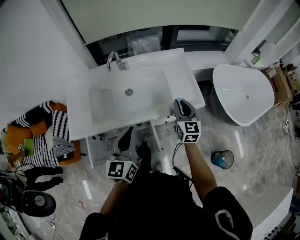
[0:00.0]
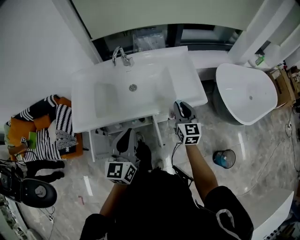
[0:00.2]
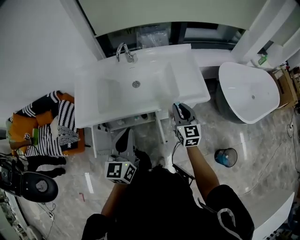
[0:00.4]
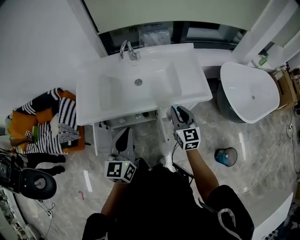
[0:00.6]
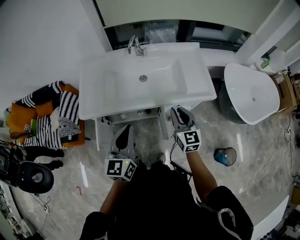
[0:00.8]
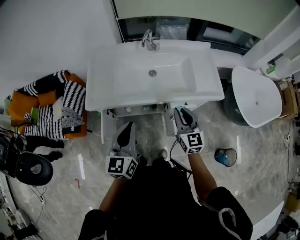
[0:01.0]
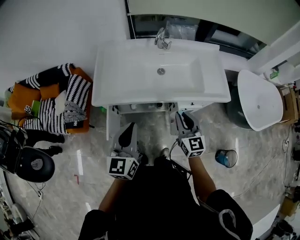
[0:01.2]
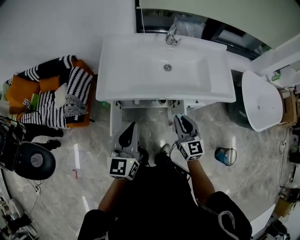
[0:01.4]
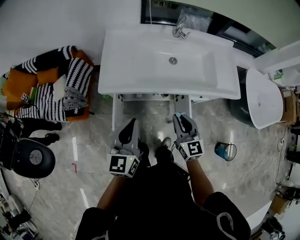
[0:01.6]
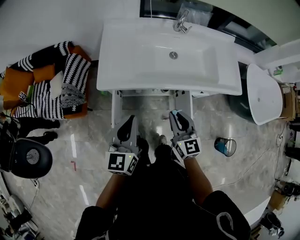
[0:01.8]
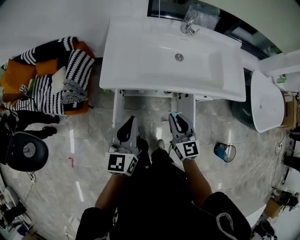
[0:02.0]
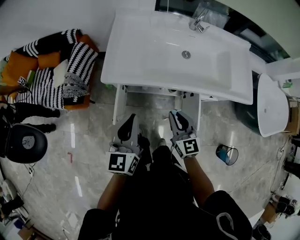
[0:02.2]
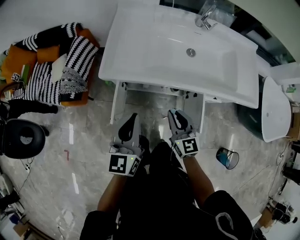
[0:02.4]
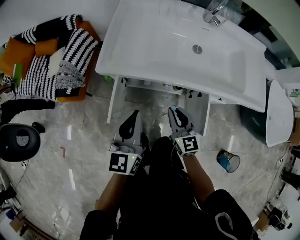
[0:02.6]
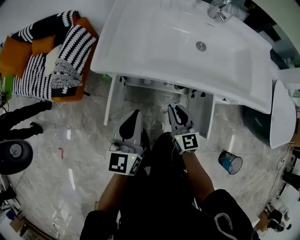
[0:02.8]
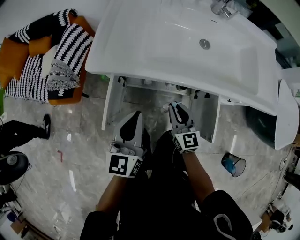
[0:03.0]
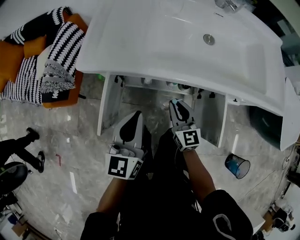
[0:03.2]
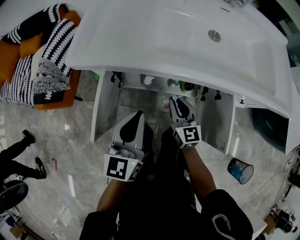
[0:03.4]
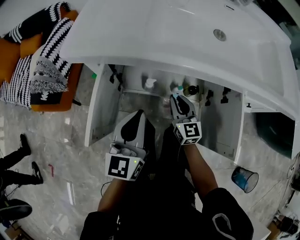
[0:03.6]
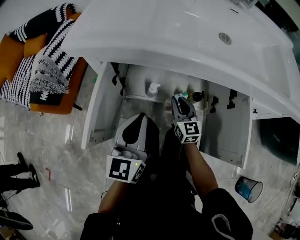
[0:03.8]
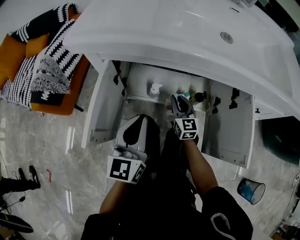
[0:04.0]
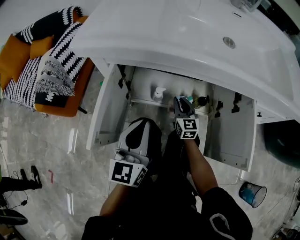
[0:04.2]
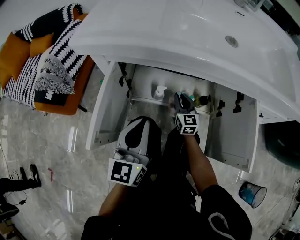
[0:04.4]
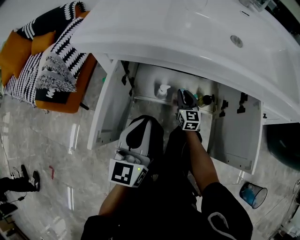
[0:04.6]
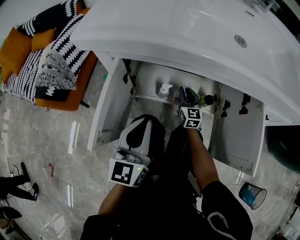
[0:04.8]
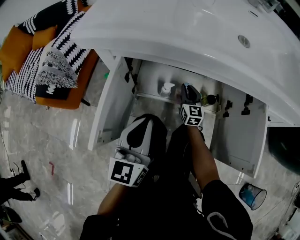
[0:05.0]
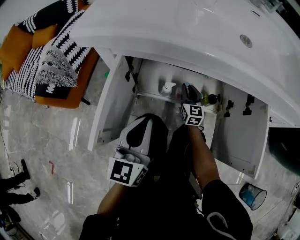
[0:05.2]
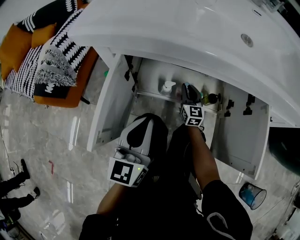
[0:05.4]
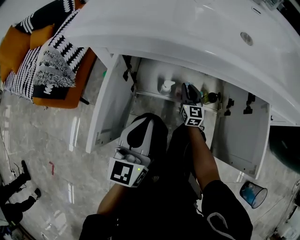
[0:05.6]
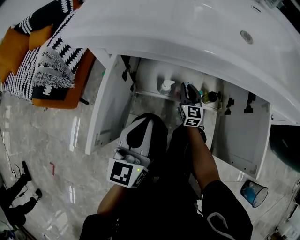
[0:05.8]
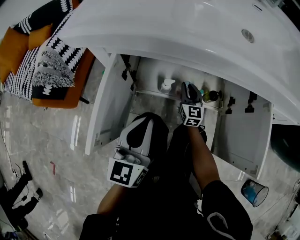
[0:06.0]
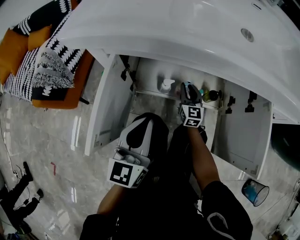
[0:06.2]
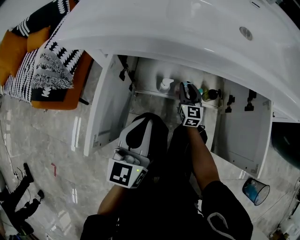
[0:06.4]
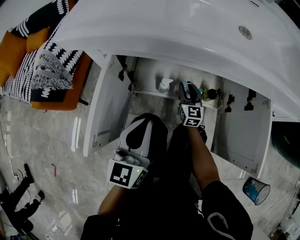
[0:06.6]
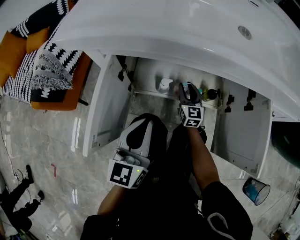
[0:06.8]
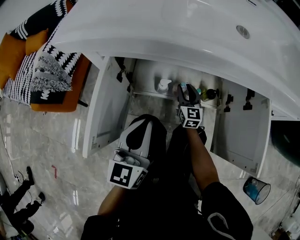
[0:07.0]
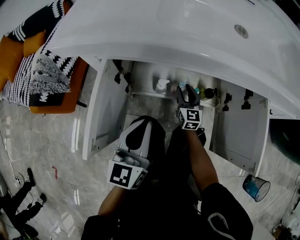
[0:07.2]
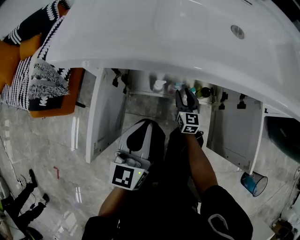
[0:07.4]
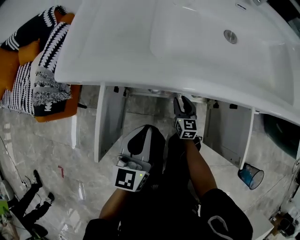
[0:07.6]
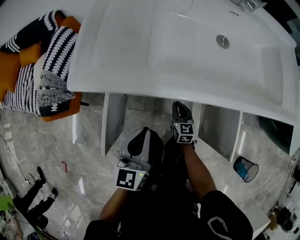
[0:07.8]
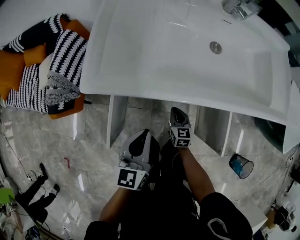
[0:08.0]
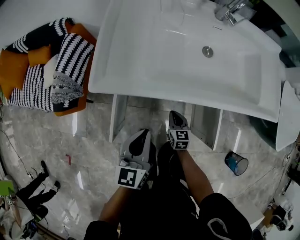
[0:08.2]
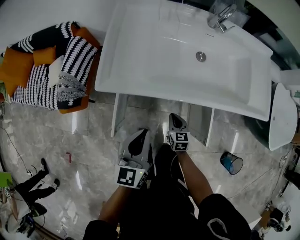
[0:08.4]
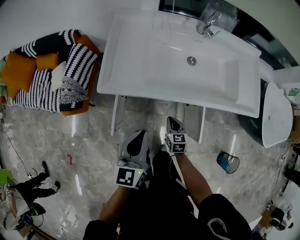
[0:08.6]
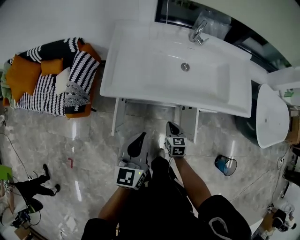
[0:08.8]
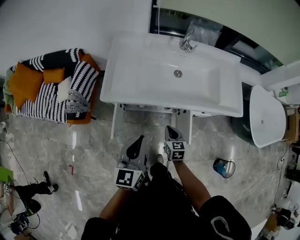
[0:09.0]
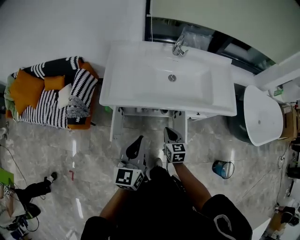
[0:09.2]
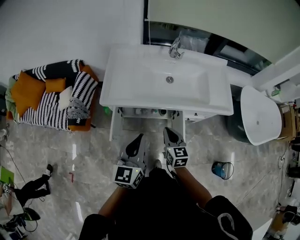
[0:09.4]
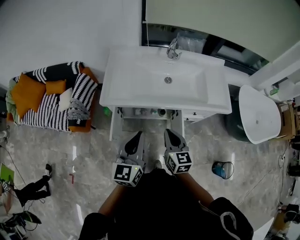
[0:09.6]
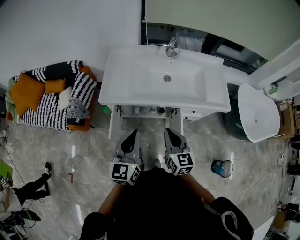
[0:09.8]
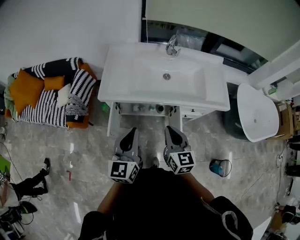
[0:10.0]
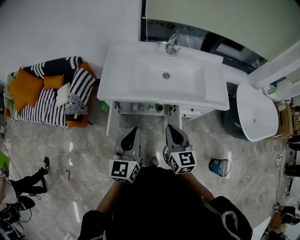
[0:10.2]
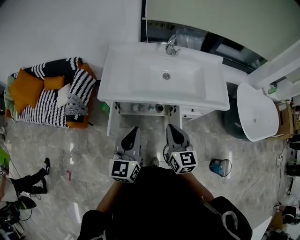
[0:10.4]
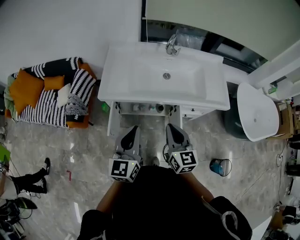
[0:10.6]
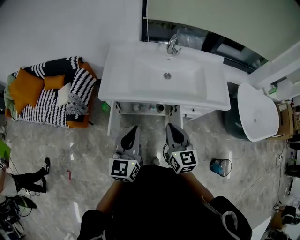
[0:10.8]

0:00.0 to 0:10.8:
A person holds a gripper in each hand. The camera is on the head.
0:00.0 to 0:01.6: The right gripper is displaced to the left and backward by approximately 35 cm, and swivels approximately 20 degrees. The left gripper heads to the left, covering some 30 cm.
0:01.6 to 0:03.0: Both grippers move downward, roughly 25 cm.
0:03.0 to 0:04.6: The left gripper moves downward, approximately 20 cm, while the right gripper is displaced downward and forward by approximately 35 cm.
0:04.6 to 0:06.2: There are only small adjustments of the grippers.
0:06.2 to 0:07.8: The left gripper goes approximately 10 cm upward. The right gripper moves backward and upward, roughly 10 cm, and changes its angle by approximately 20 degrees.
0:07.8 to 0:09.2: Both grippers move upward, some 40 cm.
0:09.2 to 0:10.8: The right gripper moves upward, approximately 20 cm, and swivels approximately 20 degrees.

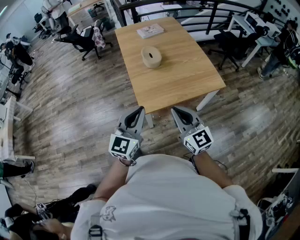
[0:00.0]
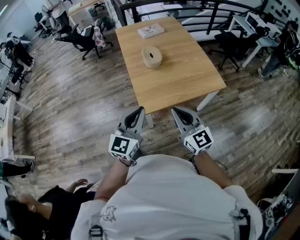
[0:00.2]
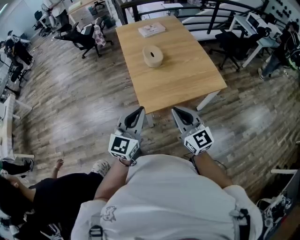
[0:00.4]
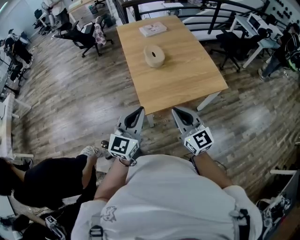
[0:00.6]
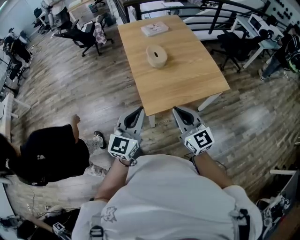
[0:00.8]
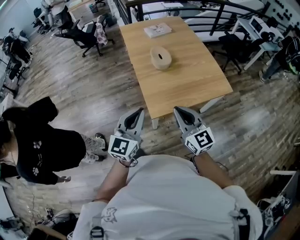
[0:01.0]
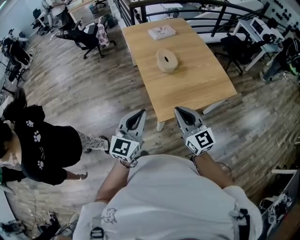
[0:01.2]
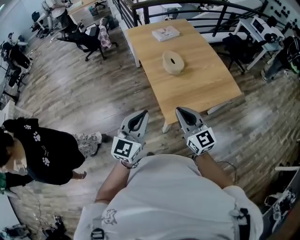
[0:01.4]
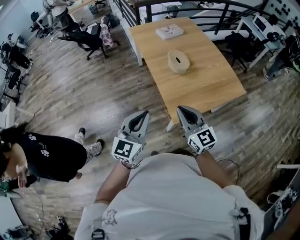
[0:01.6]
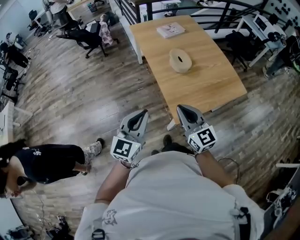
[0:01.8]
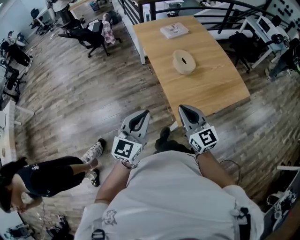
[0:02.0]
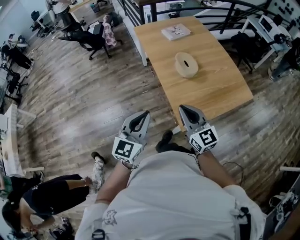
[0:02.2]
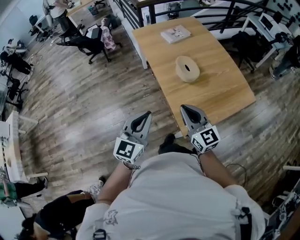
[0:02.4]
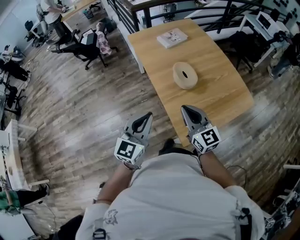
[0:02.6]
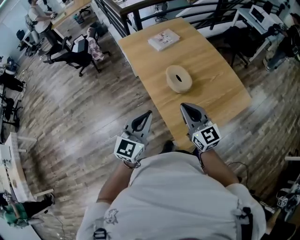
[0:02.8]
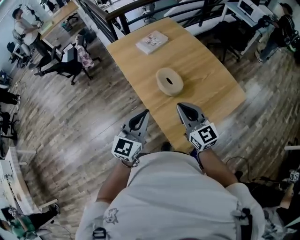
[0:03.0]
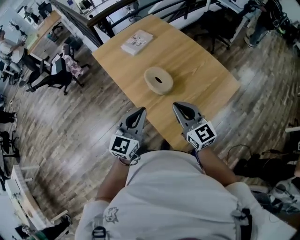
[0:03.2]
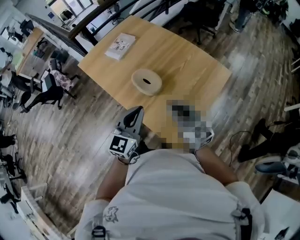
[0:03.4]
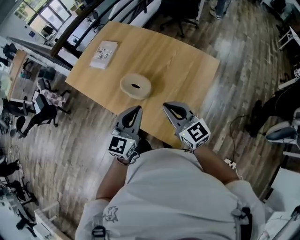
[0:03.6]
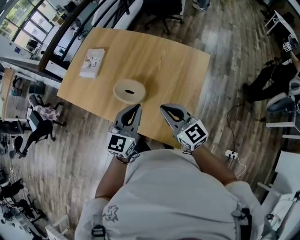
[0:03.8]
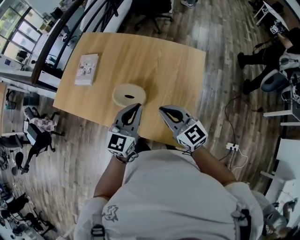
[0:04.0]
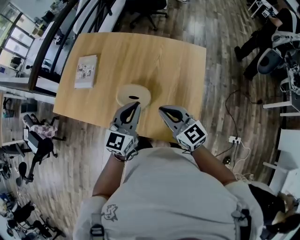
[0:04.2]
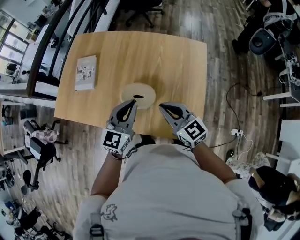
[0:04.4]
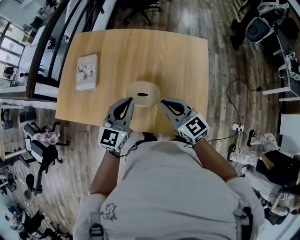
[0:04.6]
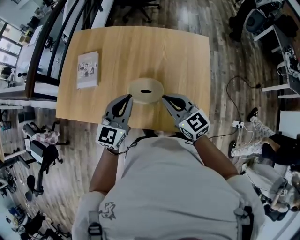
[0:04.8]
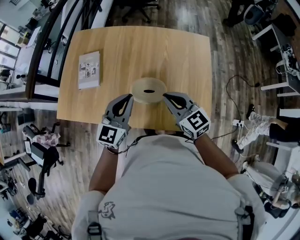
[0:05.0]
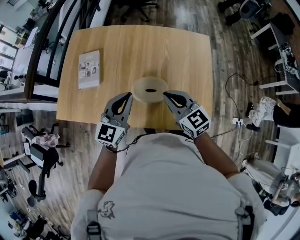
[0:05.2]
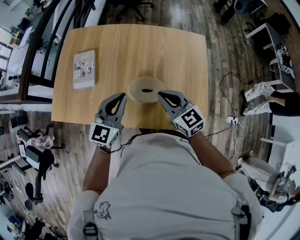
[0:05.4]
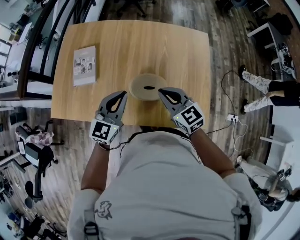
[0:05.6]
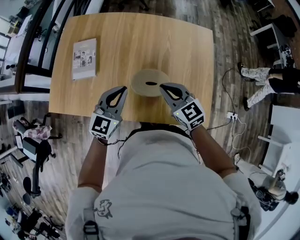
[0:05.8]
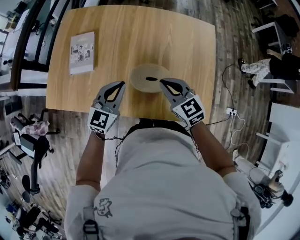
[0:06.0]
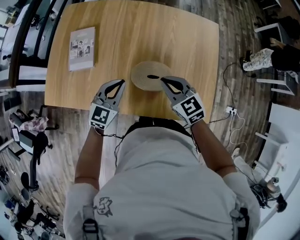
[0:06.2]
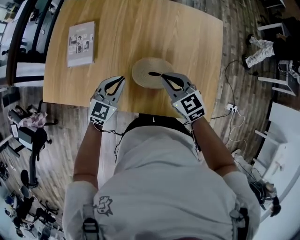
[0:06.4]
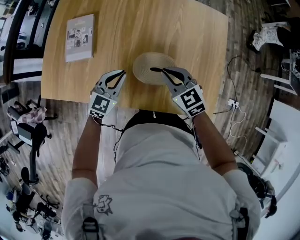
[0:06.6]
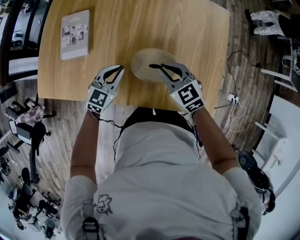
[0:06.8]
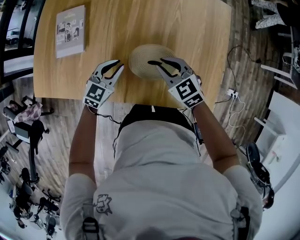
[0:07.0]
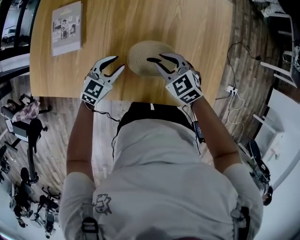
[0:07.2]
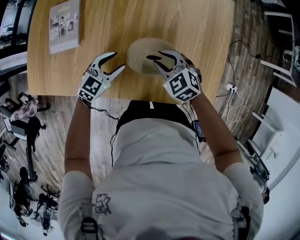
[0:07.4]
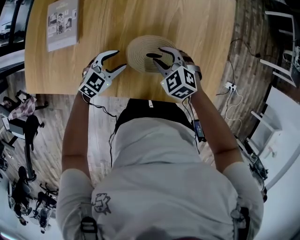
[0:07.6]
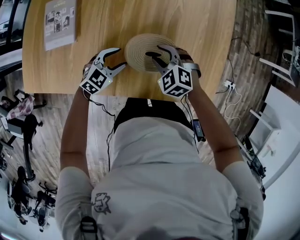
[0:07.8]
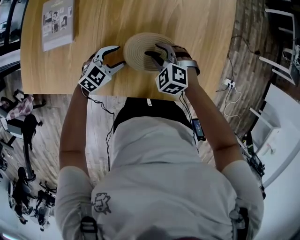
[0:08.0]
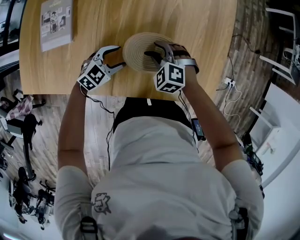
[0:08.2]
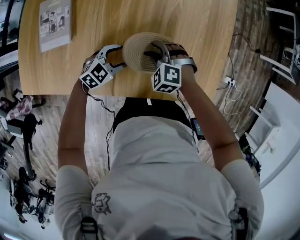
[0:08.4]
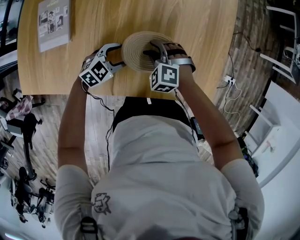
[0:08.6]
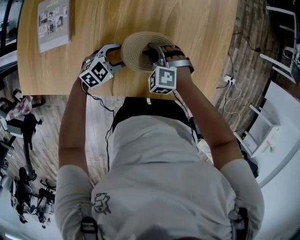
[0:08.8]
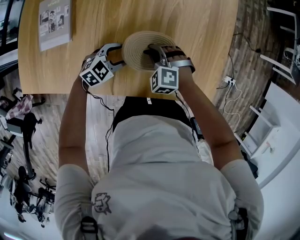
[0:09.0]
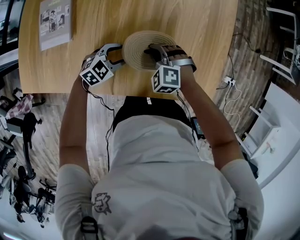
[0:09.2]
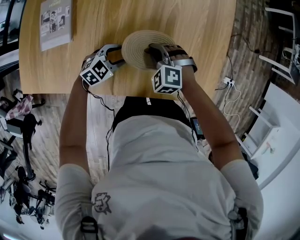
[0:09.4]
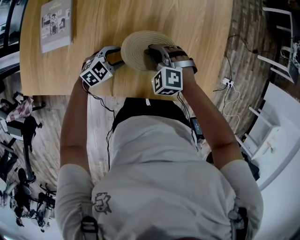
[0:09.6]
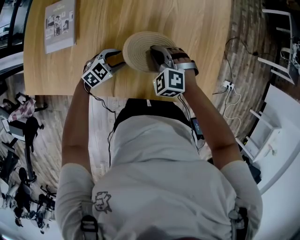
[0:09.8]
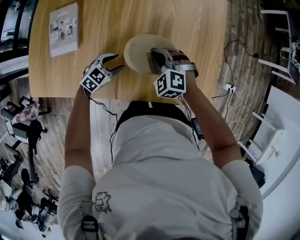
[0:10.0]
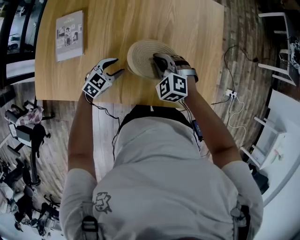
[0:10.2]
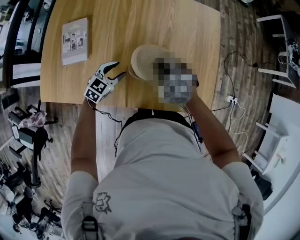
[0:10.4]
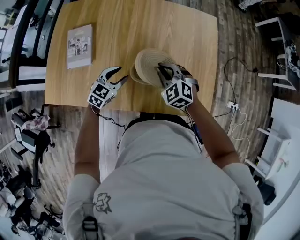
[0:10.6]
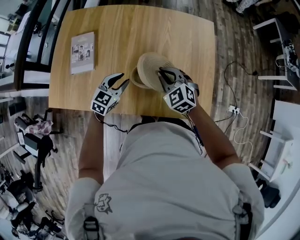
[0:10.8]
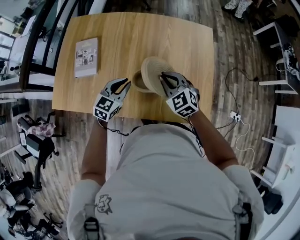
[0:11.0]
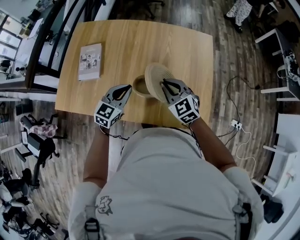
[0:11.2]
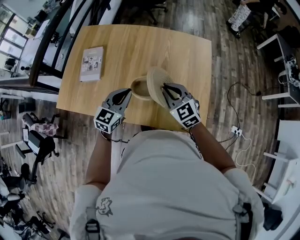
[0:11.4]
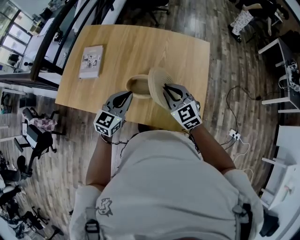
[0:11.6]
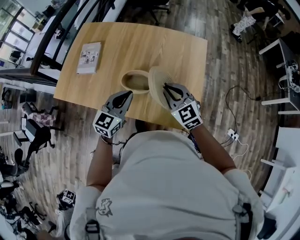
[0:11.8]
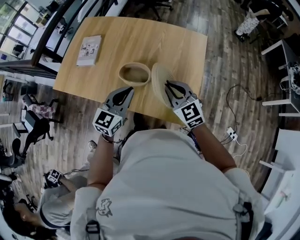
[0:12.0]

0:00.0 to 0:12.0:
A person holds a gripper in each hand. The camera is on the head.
0:00.0 to 0:01.6: The two grippers go roughly 25 cm to the left and forward.
0:01.6 to 0:03.0: Both grippers move forward, about 25 cm.
0:03.0 to 0:04.4: The right gripper changes place by roughly 15 cm, and rotates roughly 40 degrees; the left gripper moves roughly 25 cm, and changes its angle by roughly 40 degrees.
0:04.4 to 0:06.0: The right gripper goes roughly 15 cm to the left, downward and forward, while the left gripper heads to the left and downward, covering about 15 cm.
0:06.0 to 0:07.6: The two grippers go some 20 cm downward. The left gripper changes its angle by some 30 degrees, and opens its fingers. Meanwhile the right gripper rotates about 30 degrees, and opens.
0:07.6 to 0:09.0: The left gripper ends up approximately 5 cm from where it was; the right gripper heads downward, covering about 5 cm, rotates approximately 20 degrees, and closes up.
0:09.0 to 0:10.4: The two grippers go about 10 cm upward.
0:10.4 to 0:12.0: The right gripper goes approximately 25 cm to the right, upward and backward, and swivels approximately 40 degrees; the left gripper travels upward, to the right and backward by about 35 cm, turns by about 30 degrees, and closes up.

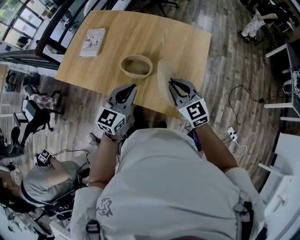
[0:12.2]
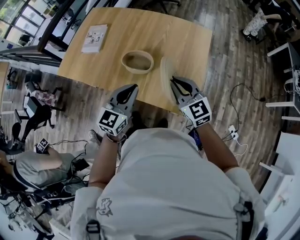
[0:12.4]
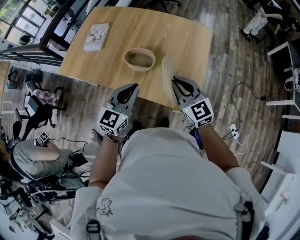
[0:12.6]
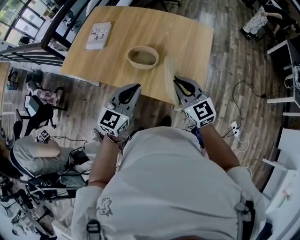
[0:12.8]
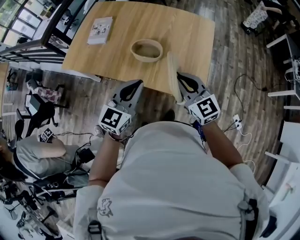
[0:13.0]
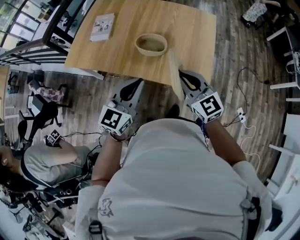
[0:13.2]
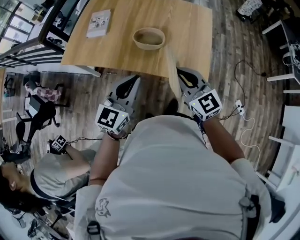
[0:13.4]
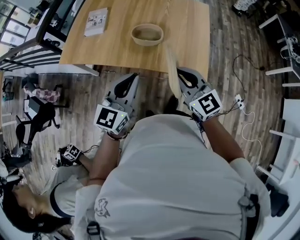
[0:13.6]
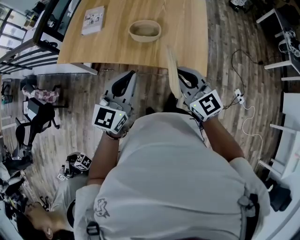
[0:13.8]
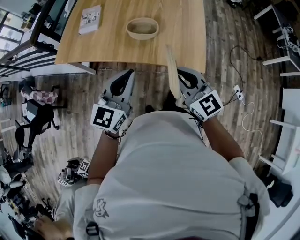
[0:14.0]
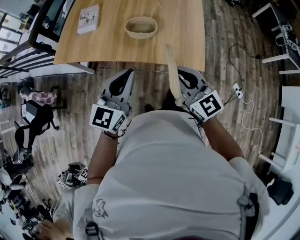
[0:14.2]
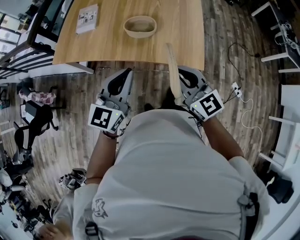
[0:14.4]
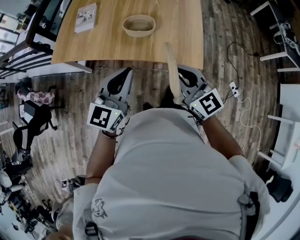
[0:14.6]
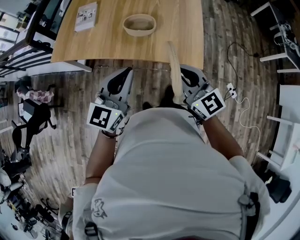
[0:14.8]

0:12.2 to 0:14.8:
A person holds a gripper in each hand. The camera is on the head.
0:12.2 to 0:13.4: The grippers both shift backward and to the left by roughly 20 cm.
0:13.4 to 0:14.8: The right gripper shifts about 5 cm backward.
